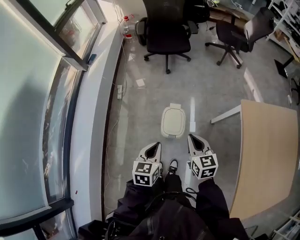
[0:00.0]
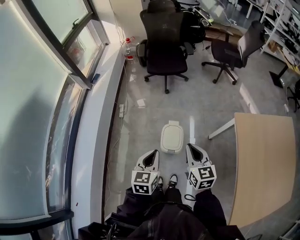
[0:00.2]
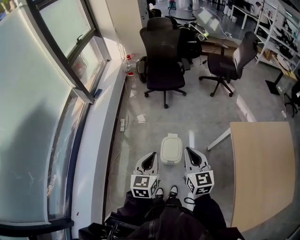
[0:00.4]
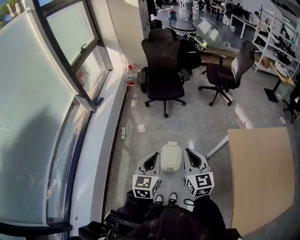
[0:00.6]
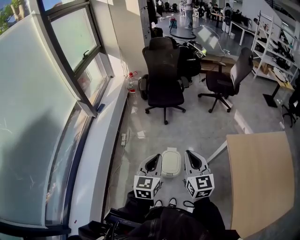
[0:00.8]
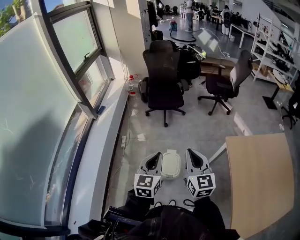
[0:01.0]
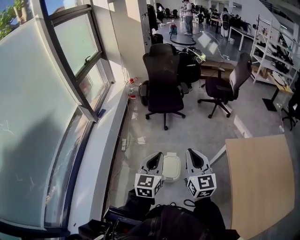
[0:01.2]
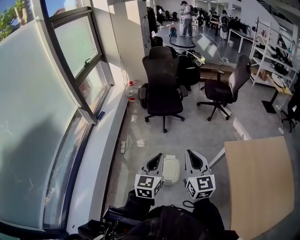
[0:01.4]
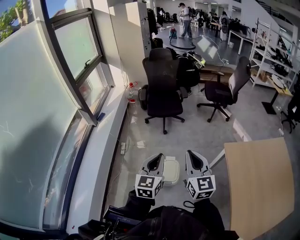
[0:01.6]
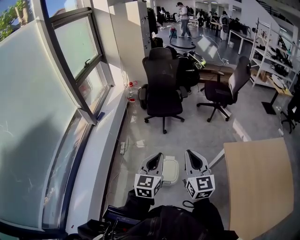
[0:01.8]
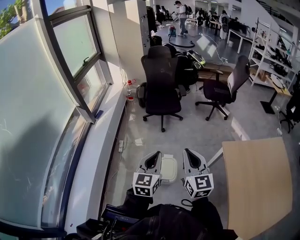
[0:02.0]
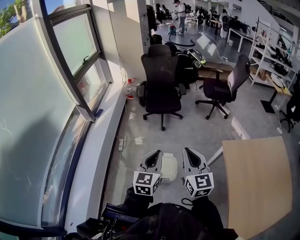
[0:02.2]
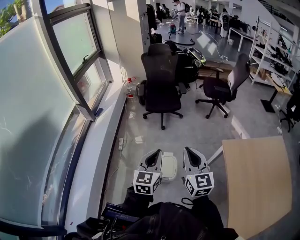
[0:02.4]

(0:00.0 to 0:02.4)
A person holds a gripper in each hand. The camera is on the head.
0:00.0 - 0:01.2: Both grippers travel together upward, roughly 25 cm. The right gripper turns by approximately 30 degrees. Meanwhile the left gripper rotates roughly 30 degrees.
0:01.2 - 0:02.4: There are only small adjustments of the grippers.

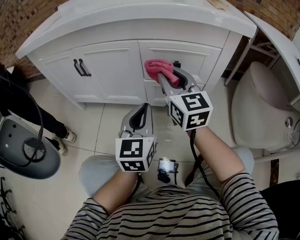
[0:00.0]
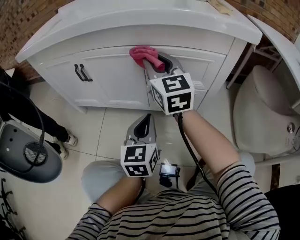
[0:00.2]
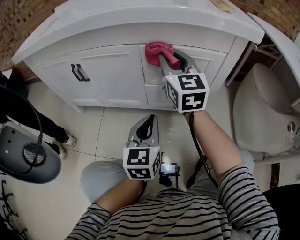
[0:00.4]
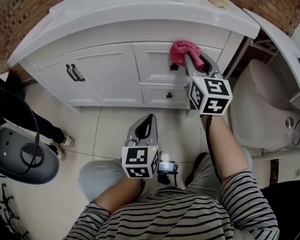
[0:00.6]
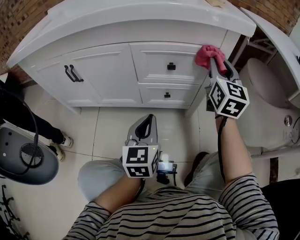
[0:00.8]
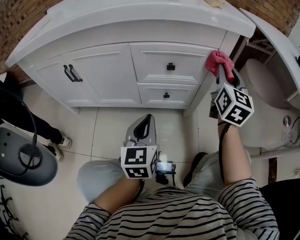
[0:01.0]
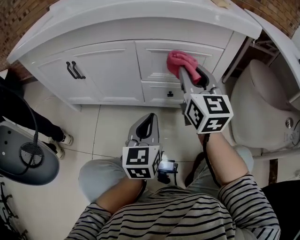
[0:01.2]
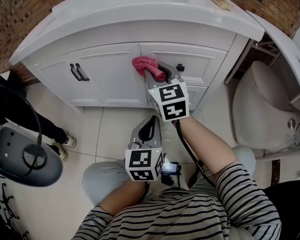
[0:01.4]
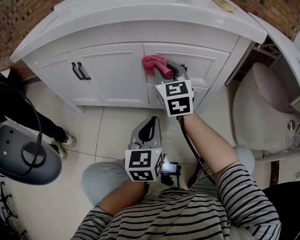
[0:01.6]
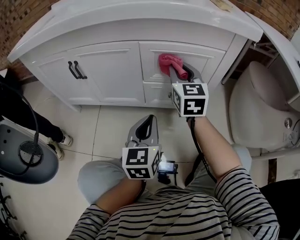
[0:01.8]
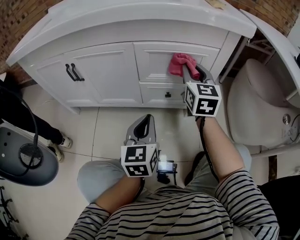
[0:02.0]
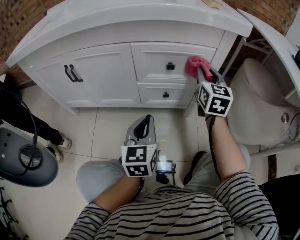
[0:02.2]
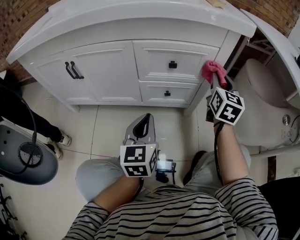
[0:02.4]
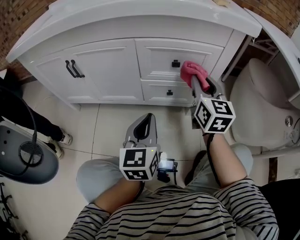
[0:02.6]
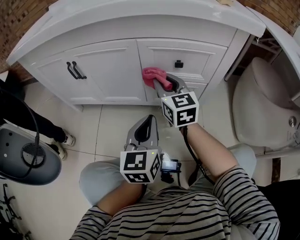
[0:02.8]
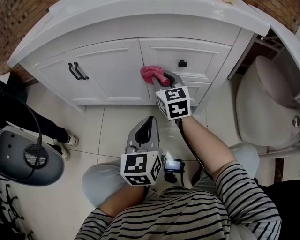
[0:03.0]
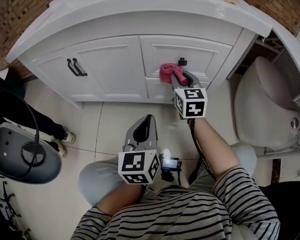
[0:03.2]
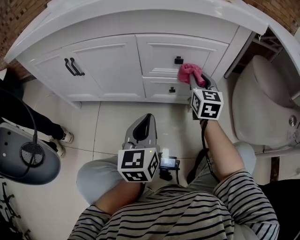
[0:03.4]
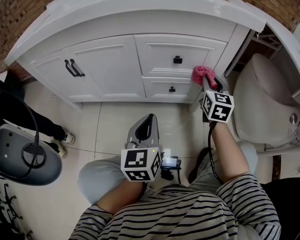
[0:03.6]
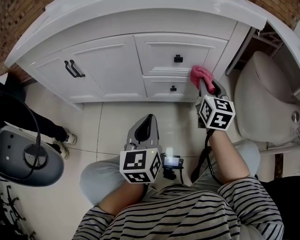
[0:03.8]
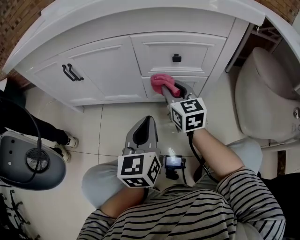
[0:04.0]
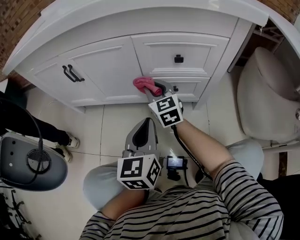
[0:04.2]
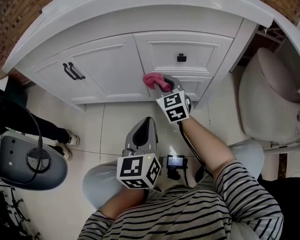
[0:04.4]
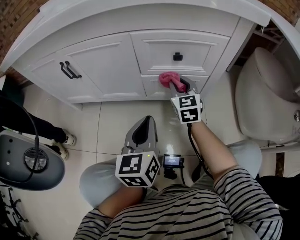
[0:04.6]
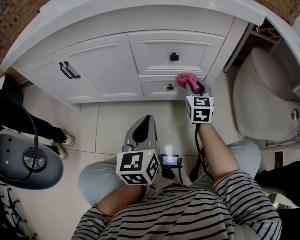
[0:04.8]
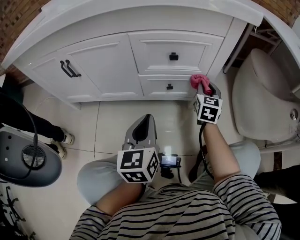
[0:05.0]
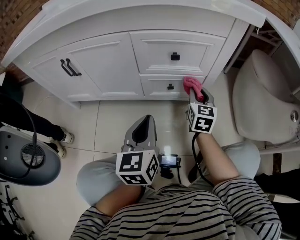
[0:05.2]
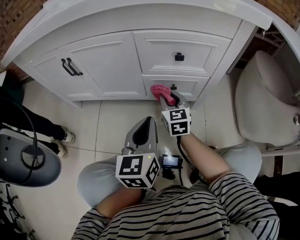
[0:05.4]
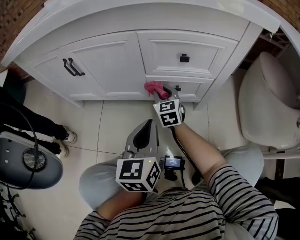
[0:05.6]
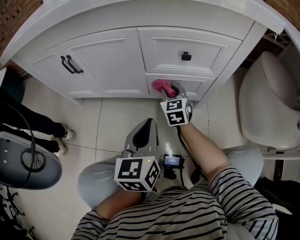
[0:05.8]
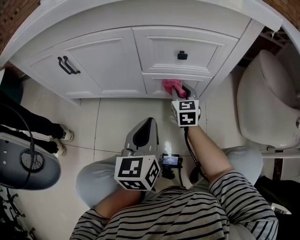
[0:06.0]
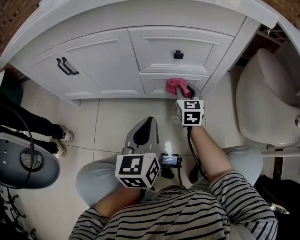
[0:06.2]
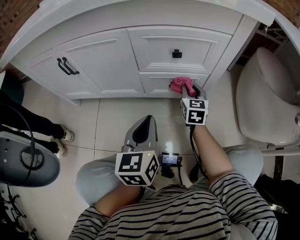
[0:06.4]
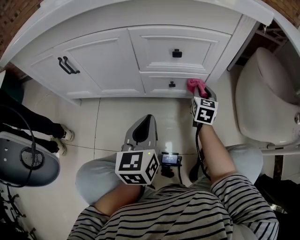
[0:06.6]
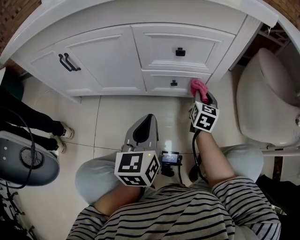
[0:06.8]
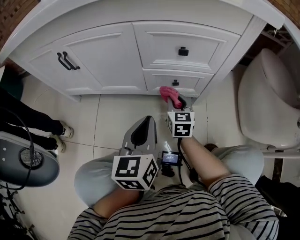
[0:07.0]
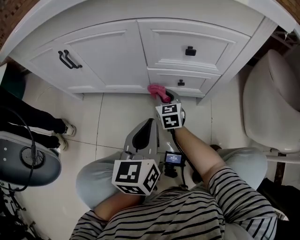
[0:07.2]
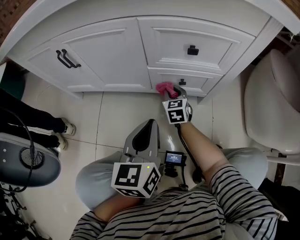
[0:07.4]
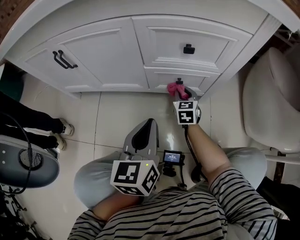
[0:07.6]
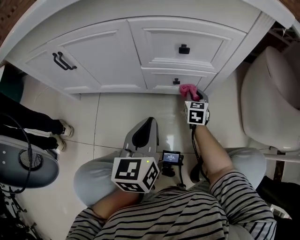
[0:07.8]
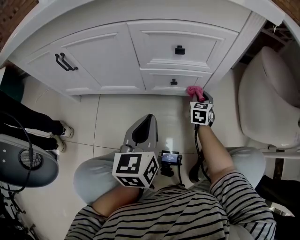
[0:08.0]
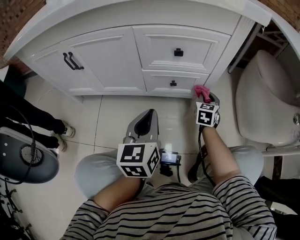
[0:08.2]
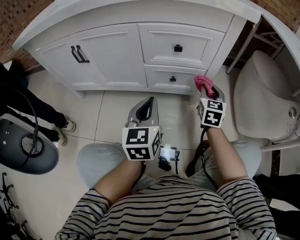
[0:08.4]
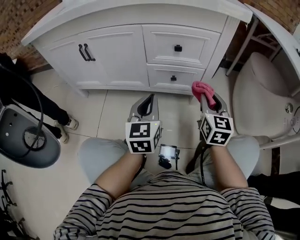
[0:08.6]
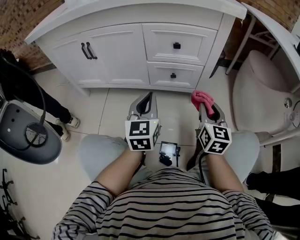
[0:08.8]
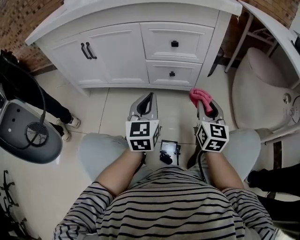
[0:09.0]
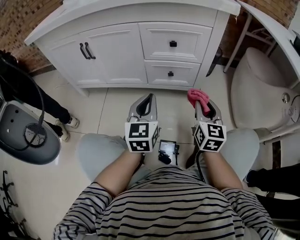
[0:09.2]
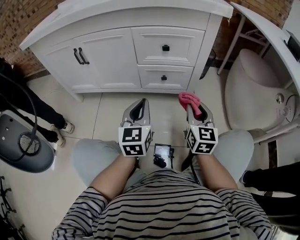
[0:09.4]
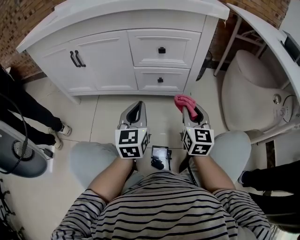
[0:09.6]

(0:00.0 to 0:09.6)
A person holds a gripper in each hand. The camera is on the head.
0:00.0 - 0:01.6: The right gripper moves left and right over some 30 cm, changing direction 2 times.
0:01.6 - 0:03.2: The right gripper swings left and right, some 25 cm each way, with 2 reversals.
0:03.2 - 0:04.8: The right gripper swings left and right, approximately 25 cm each way, with 2 reversals.
0:04.8 - 0:06.4: The right gripper goes left and right, approximately 25 cm each way, reversing 2 times.
0:06.4 - 0:08.0: The right gripper moves left and right over about 20 cm, changing direction 2 times.
0:08.0 - 0:09.6: The right gripper goes some 30 cm upward and backward, and rotates roughly 30 degrees. The left gripper is displaced backward by roughly 5 cm.

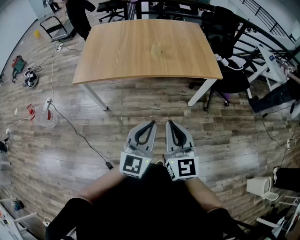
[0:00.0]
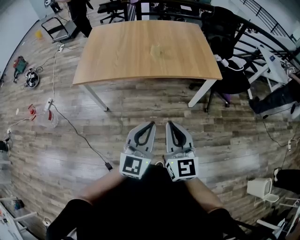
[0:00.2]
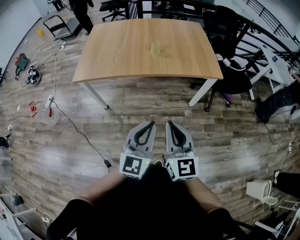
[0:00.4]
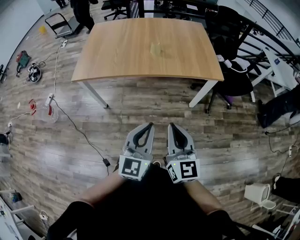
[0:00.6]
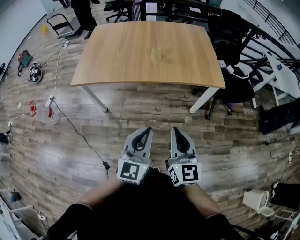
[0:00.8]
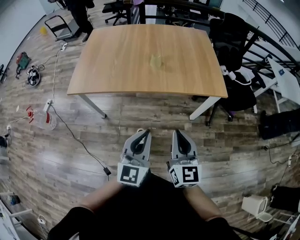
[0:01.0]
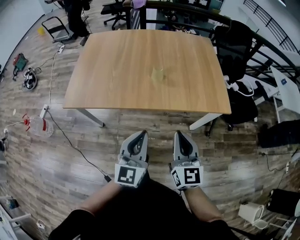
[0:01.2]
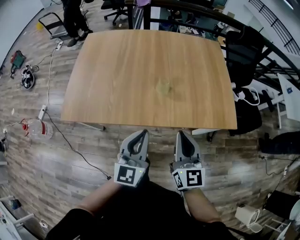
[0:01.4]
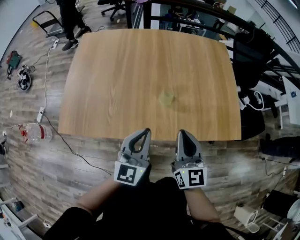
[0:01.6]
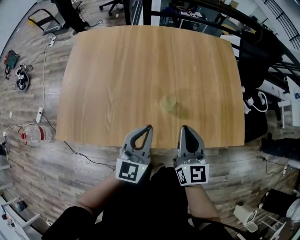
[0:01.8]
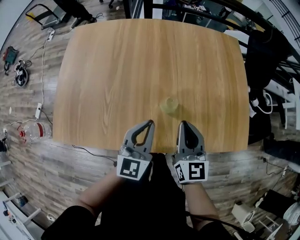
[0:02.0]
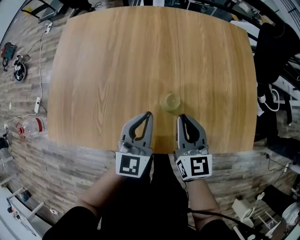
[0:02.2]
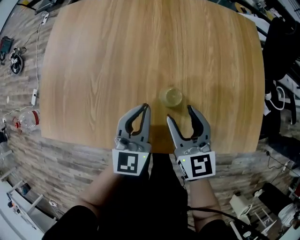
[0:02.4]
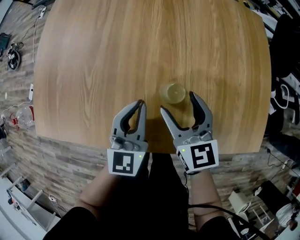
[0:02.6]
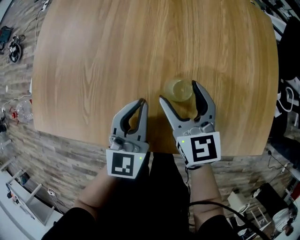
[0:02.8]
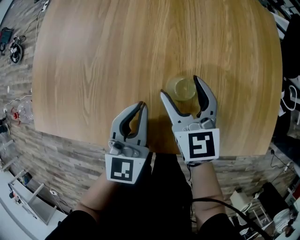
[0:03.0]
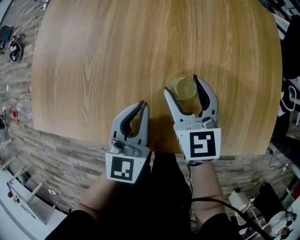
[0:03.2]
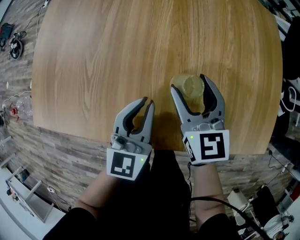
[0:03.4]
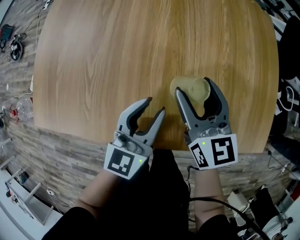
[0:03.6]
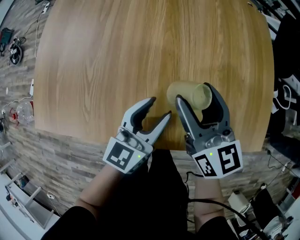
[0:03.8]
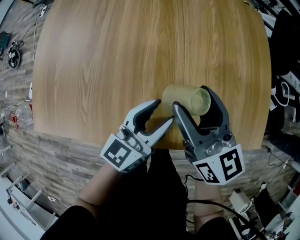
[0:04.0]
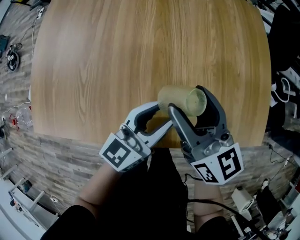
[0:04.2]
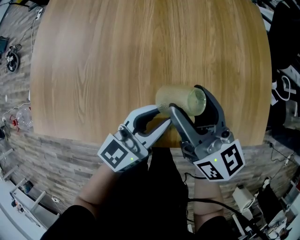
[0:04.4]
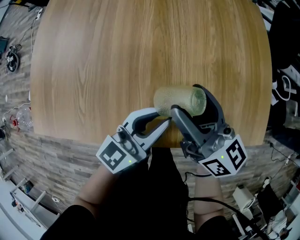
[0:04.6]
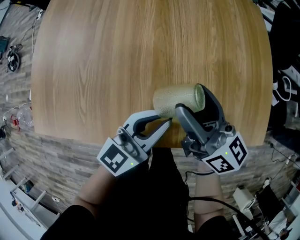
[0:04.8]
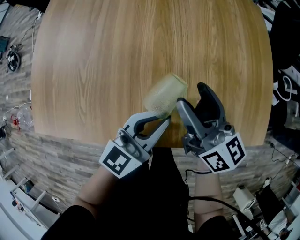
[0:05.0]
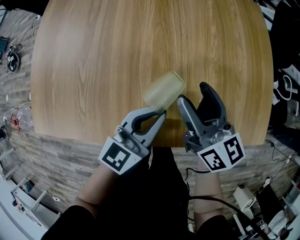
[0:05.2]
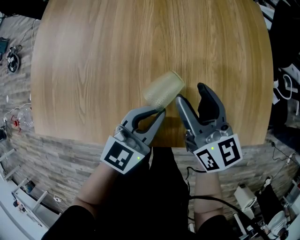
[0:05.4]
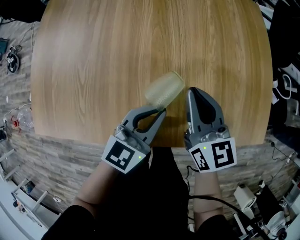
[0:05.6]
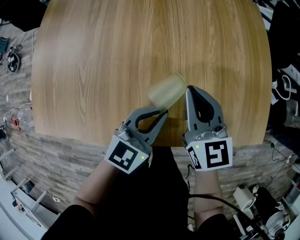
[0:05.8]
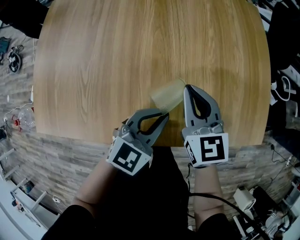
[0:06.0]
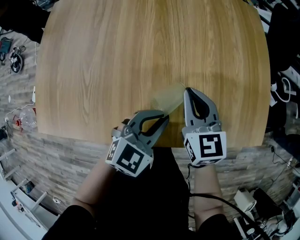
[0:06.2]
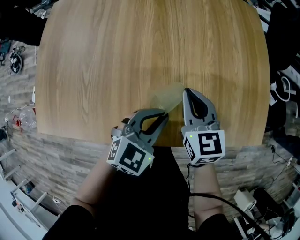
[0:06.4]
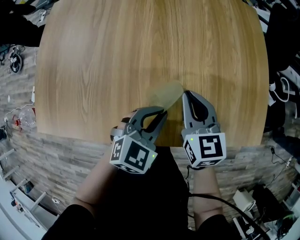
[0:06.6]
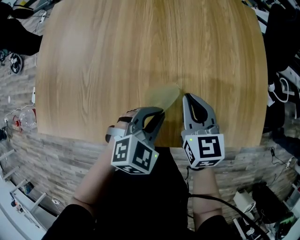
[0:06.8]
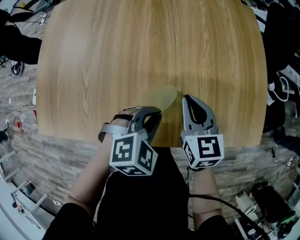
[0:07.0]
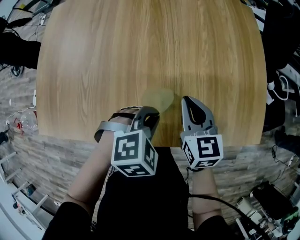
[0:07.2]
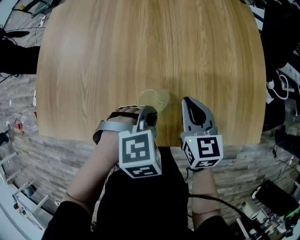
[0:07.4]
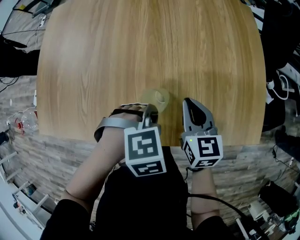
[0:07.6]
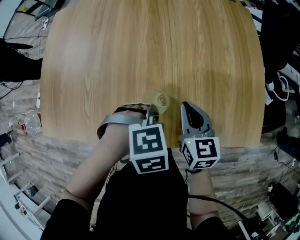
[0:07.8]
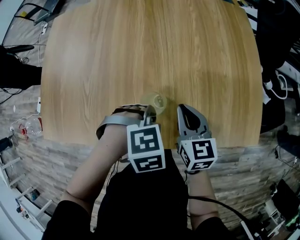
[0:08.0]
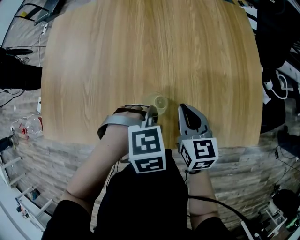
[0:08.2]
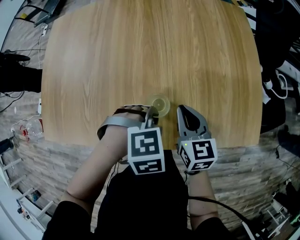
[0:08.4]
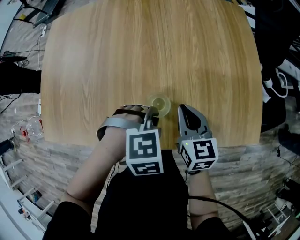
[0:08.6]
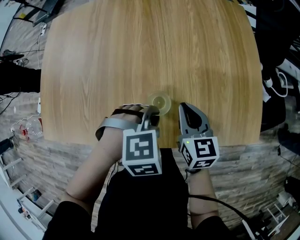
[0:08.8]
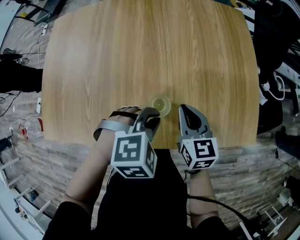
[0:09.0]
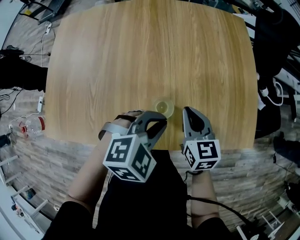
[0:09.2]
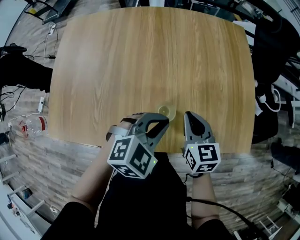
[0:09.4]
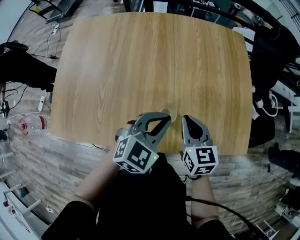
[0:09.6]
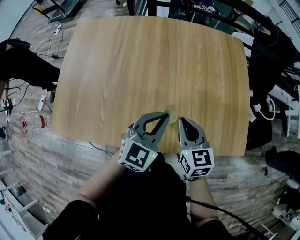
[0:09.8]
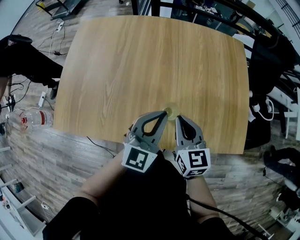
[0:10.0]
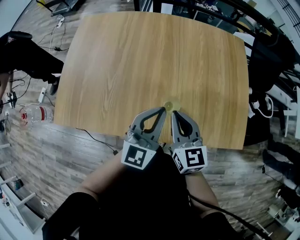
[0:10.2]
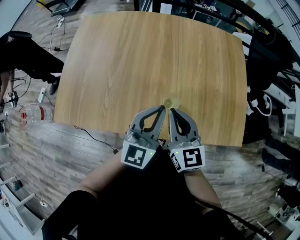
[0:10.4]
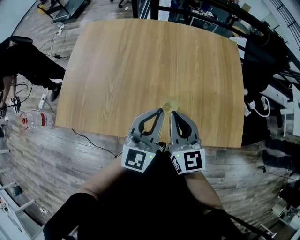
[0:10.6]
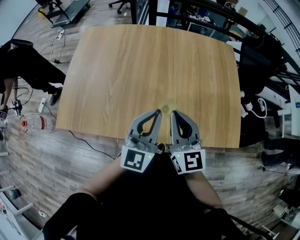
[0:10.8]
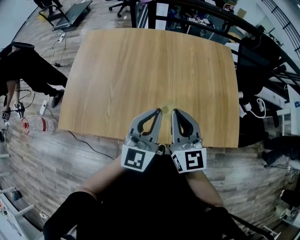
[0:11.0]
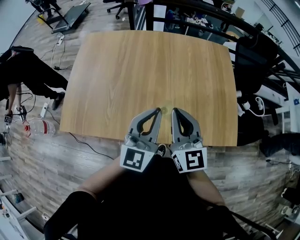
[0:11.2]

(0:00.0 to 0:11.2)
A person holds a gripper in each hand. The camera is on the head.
0:00.0 - 0:01.6: The pair of grippers is taken forward, about 50 cm.
0:01.6 - 0:03.2: The left gripper moves downward and forward, approximately 25 cm; the right gripper goes approximately 30 cm forward and downward, turns by some 30 degrees, and opens.
0:03.2 - 0:04.8: The left gripper goes some 10 cm to the right, swivels about 40 degrees, and opens, then closes again. The right gripper travels upward and to the right by about 10 cm, and changes its angle by some 40 degrees.
0:04.8 - 0:06.4: The left gripper rotates approximately 40 degrees; the right gripper goes approximately 5 cm downward, swivels about 40 degrees, and closes.
0:06.4 - 0:08.0: The right gripper shifts by approximately 5 cm; the left gripper angles its fingers downward, by approximately 50 degrees.
0:08.0 - 0:09.6: The right gripper goes approximately 5 cm upward. Meanwhile the left gripper heads upward, covering about 10 cm, and tips its fingers upward by approximately 50 degrees.
0:09.6 - 0:11.2: The two grippers go roughly 15 cm upward. The right gripper changes its angle by roughly 30 degrees; the left gripper angles its fingers upward, by some 30 degrees.
